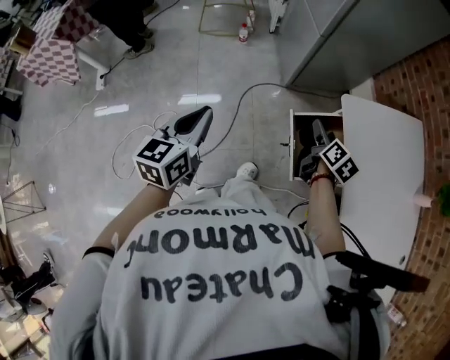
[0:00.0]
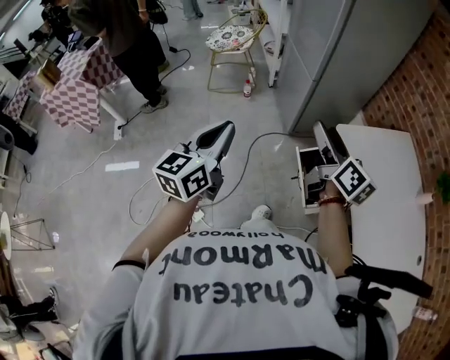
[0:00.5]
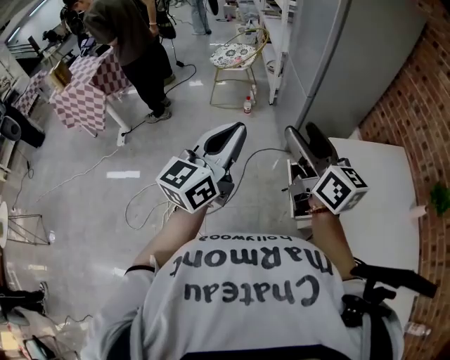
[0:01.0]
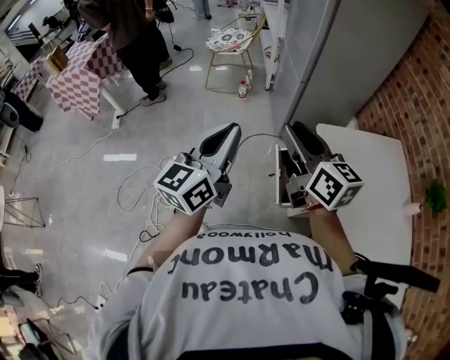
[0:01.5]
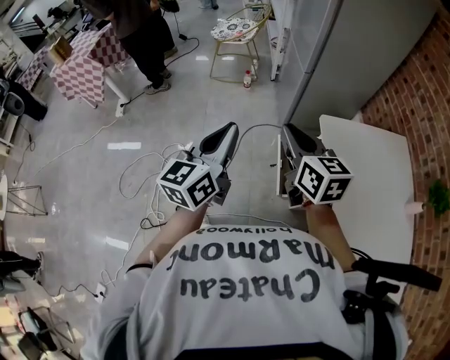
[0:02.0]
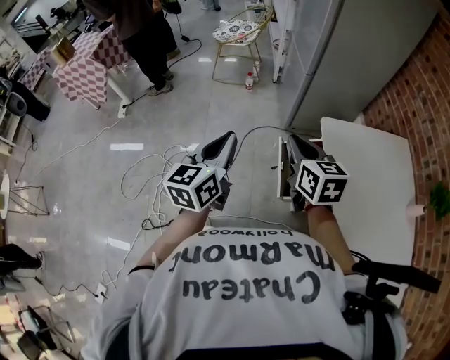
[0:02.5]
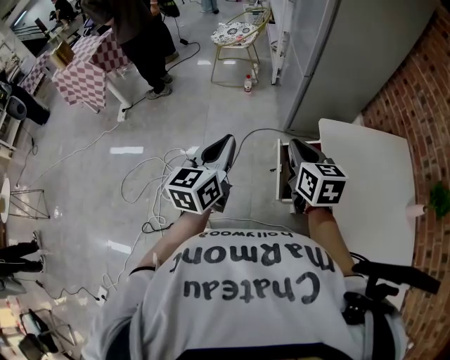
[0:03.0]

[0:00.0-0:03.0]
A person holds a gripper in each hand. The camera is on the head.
0:00.0 to 0:01.5: The left gripper moves upward, to the right and backward, some 20 cm, and swivels some 30 degrees. The right gripper heads upward, covering approximately 30 cm, tips its fingers upward by roughly 30 degrees, and closes.
0:01.5 to 0:03.0: Both grippers travel together downward, about 10 cm. The right gripper changes its angle by roughly 20 degrees, and closes.

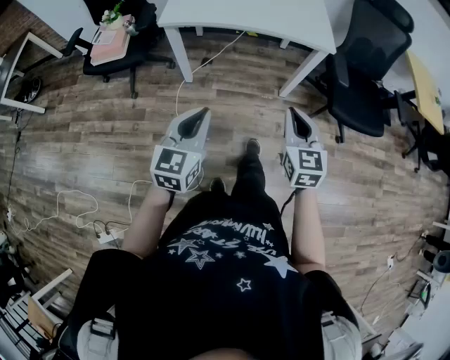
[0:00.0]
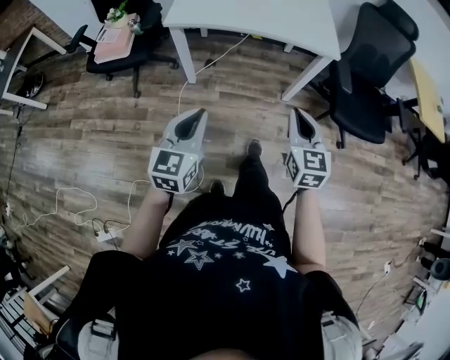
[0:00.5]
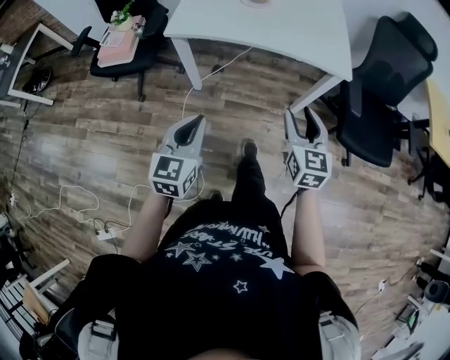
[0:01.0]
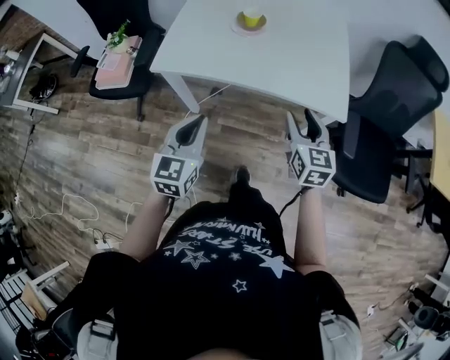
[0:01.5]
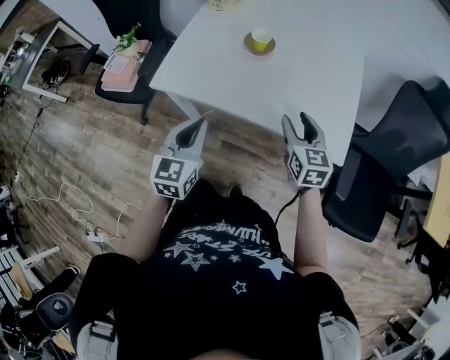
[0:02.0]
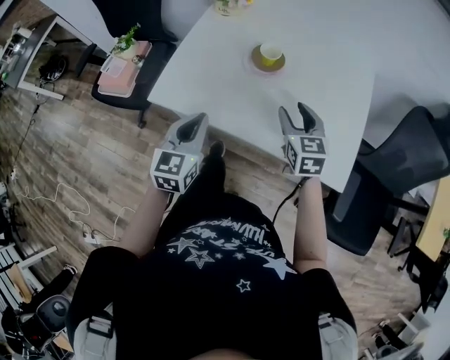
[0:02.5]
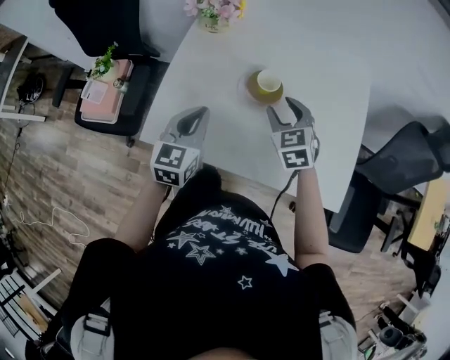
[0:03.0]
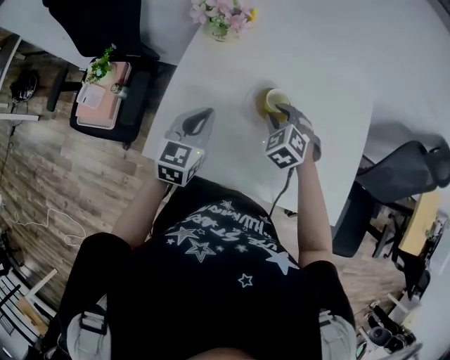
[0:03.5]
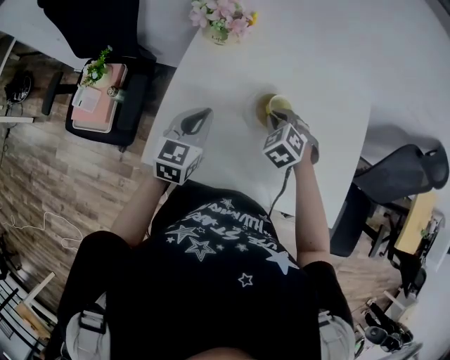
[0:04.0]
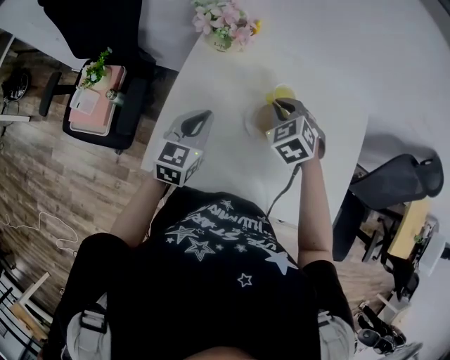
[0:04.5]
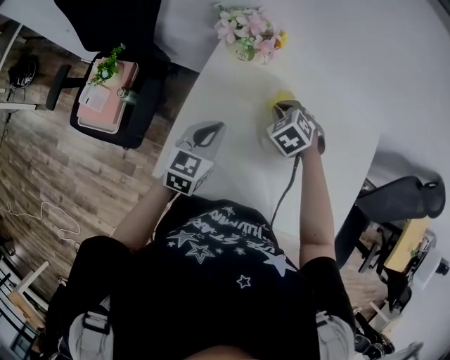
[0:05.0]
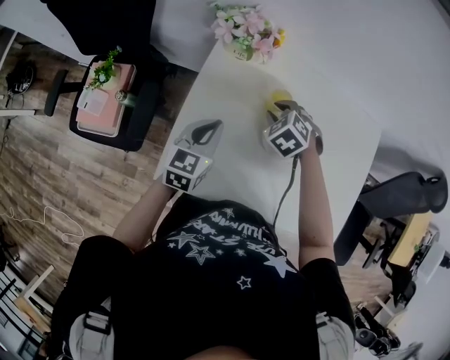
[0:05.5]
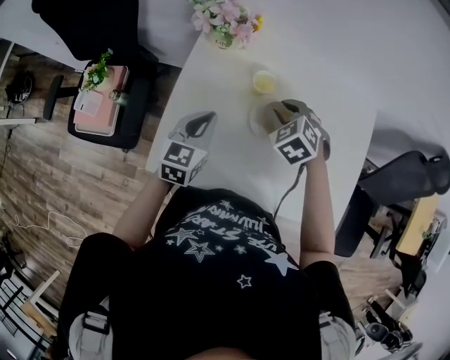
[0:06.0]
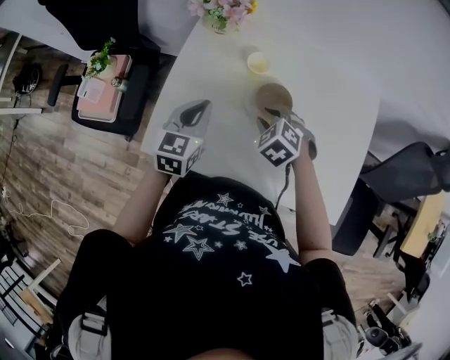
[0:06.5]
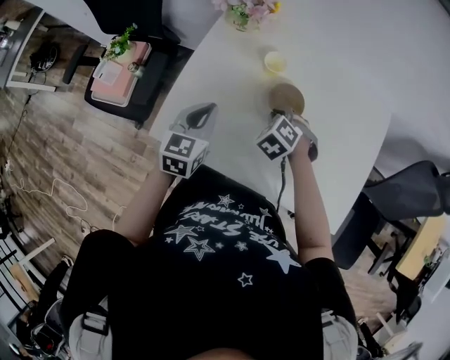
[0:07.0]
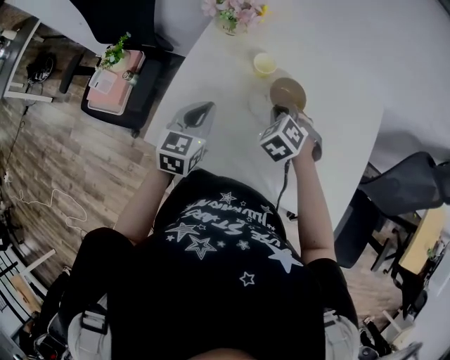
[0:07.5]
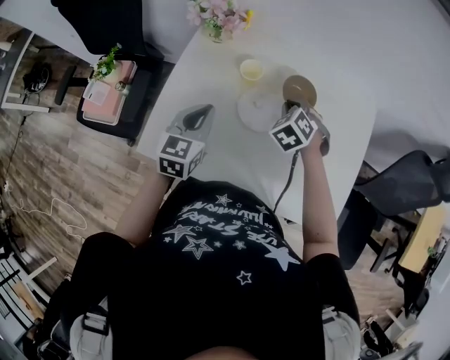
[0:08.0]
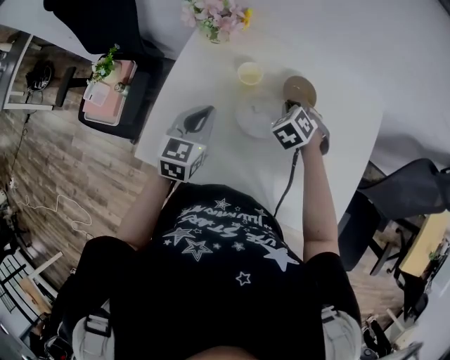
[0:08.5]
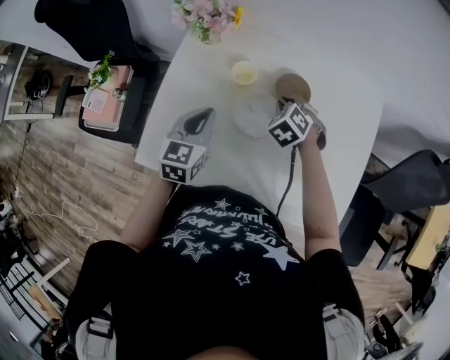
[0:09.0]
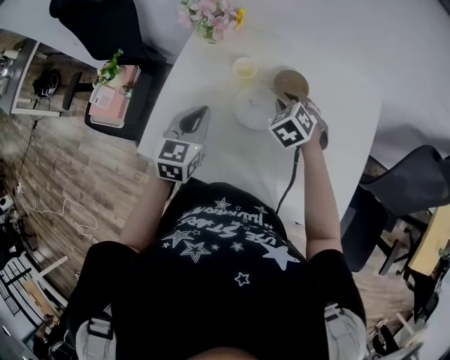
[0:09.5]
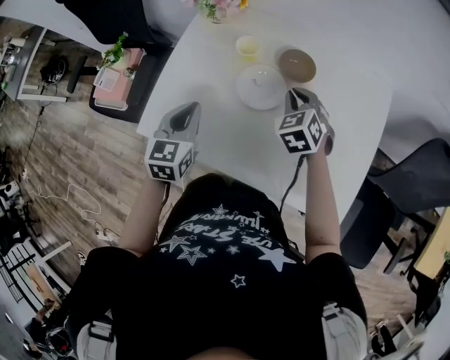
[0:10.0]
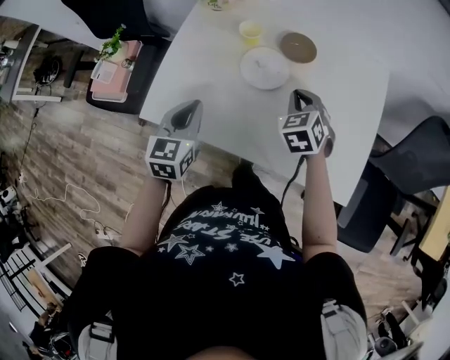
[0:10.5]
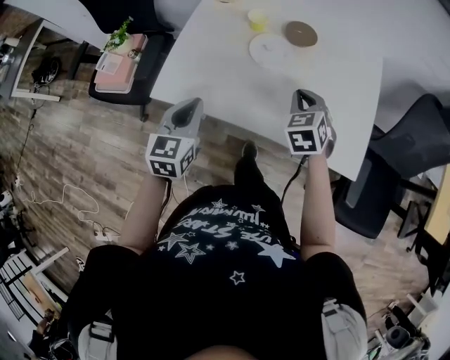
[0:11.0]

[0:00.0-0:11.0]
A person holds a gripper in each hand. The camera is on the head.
0:00.0 to 0:02.0: Both grippers move forward, about 40 cm. The right gripper opens.
0:02.0 to 0:03.5: The left gripper is displaced forward by roughly 30 cm, while the right gripper shifts about 30 cm forward and to the left, rolls counterclockwise, seen from behind, by approximately 50 degrees, and closes up.
0:03.5 to 0:05.5: The right gripper is displaced to the left and forward by about 10 cm. Meanwhile the left gripper goes approximately 10 cm forward and to the left.
0:05.5 to 0:07.5: The left gripper goes some 5 cm backward. The right gripper goes approximately 10 cm backward and to the right, and closes its fingers.
0:07.5 to 0:09.0: The right gripper shifts some 10 cm forward and to the right. Meanwhile the left gripper goes some 5 cm forward.
0:09.0 to 0:11.0: The two grippers go some 20 cm backward. The right gripper turns by some 30 degrees.

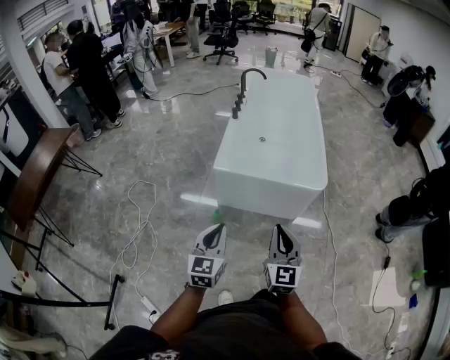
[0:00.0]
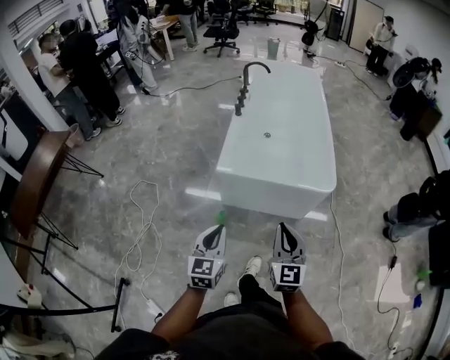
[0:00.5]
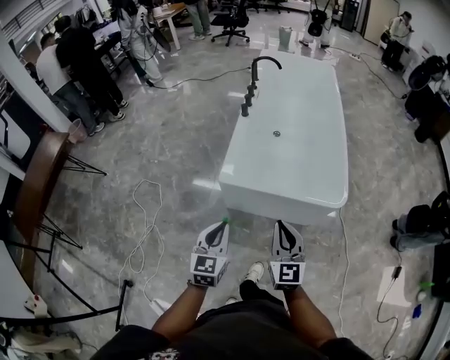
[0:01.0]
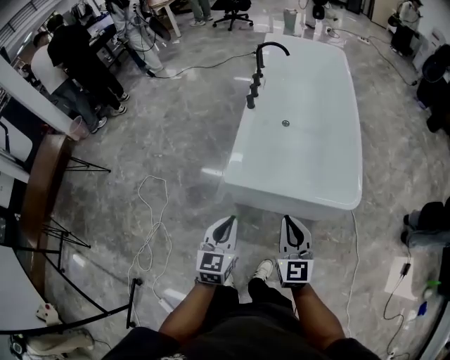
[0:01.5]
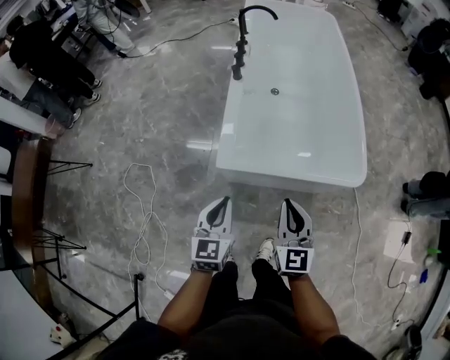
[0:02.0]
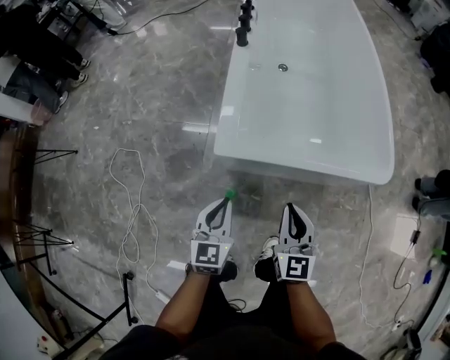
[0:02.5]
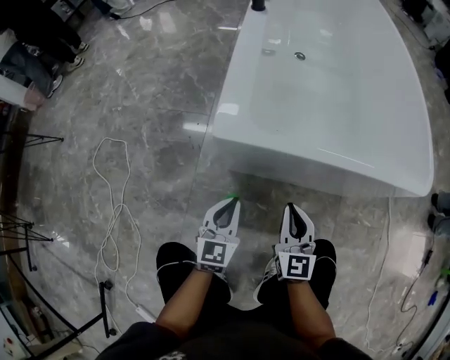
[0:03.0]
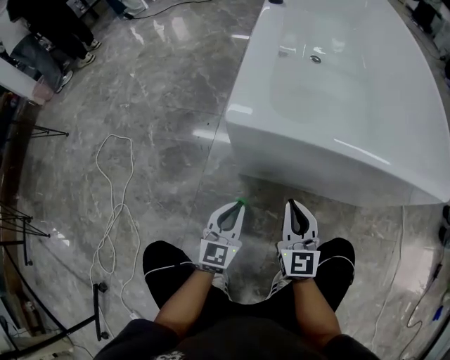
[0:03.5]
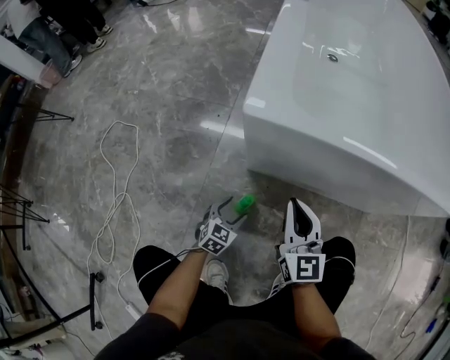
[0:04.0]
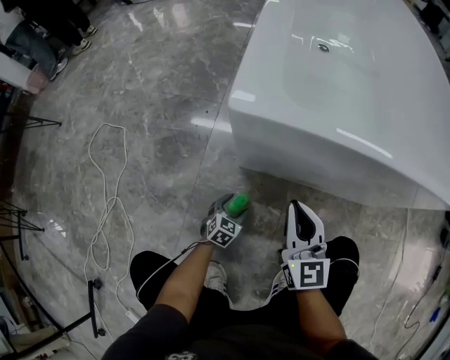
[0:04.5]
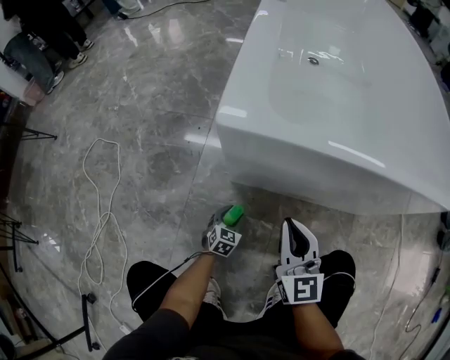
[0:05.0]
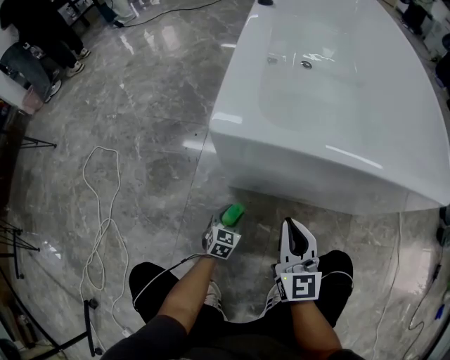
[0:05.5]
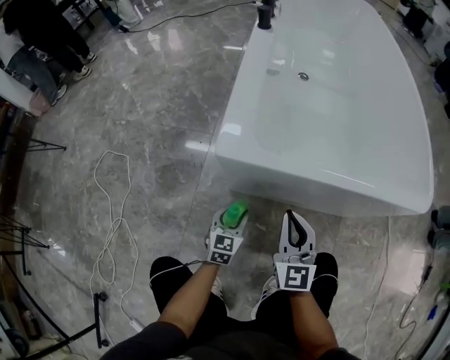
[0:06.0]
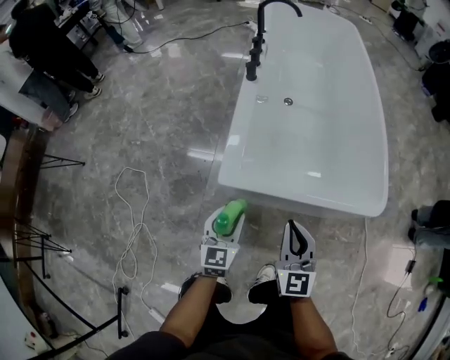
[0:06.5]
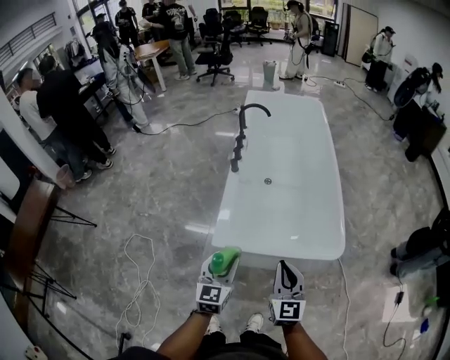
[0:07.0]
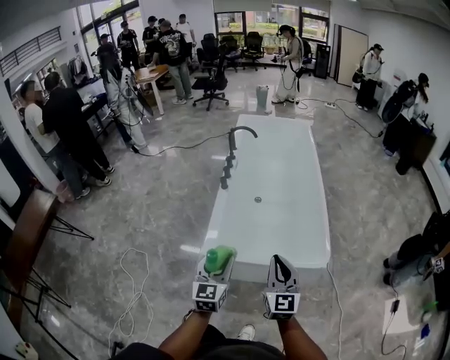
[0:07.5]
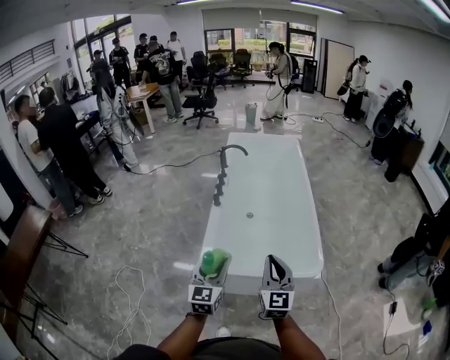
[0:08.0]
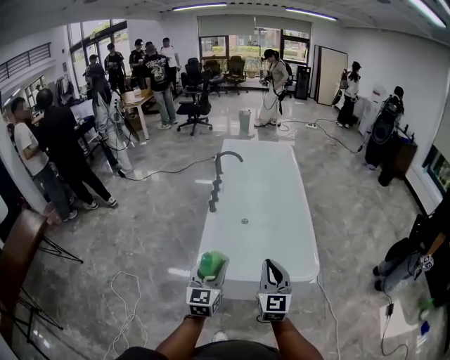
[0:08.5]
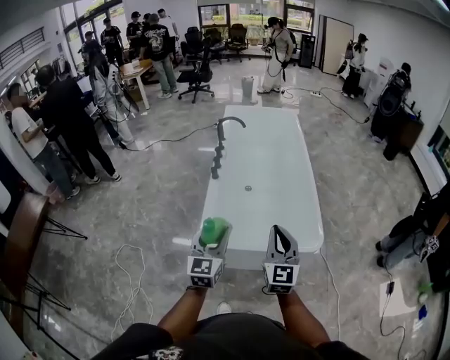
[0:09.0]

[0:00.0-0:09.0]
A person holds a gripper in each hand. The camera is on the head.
0:00.0 to 0:02.0: The grippers both shift forward by roughly 35 cm.
0:02.0 to 0:04.5: The right gripper shifts about 50 cm downward. Meanwhile the left gripper is displaced downward by roughly 80 cm, changes its angle by roughly 30 degrees, and opens its fingers.
0:04.5 to 0:07.0: The two grippers go about 80 cm upward. The left gripper tilts its fingers about 30 degrees upward, and closes.
0:07.0 to 0:09.0: The two grippers go about 10 cm upward.

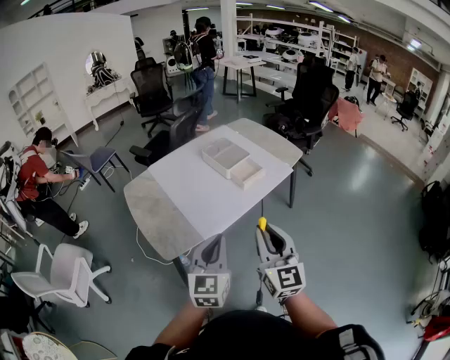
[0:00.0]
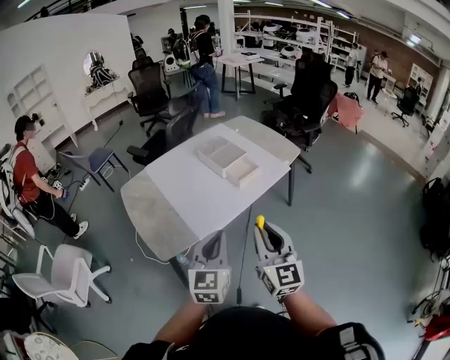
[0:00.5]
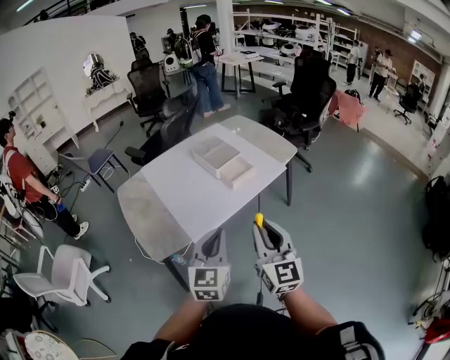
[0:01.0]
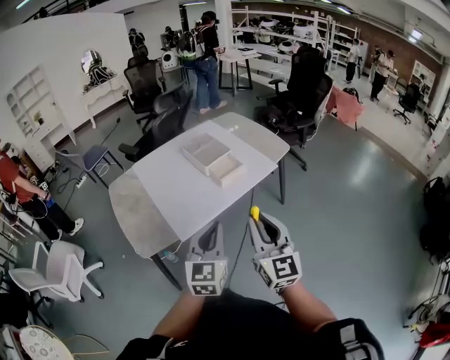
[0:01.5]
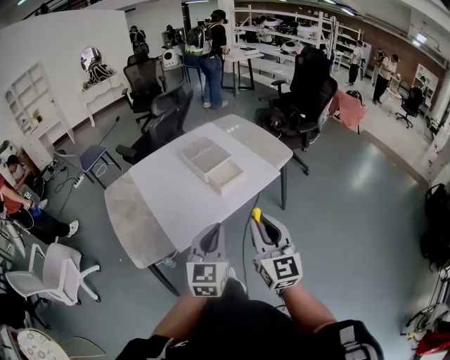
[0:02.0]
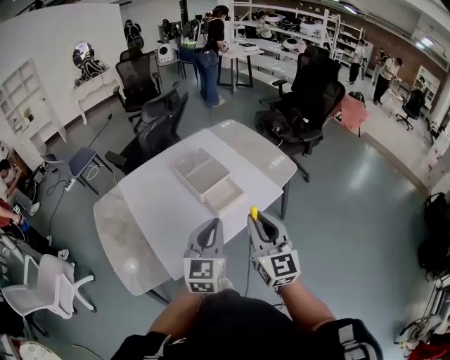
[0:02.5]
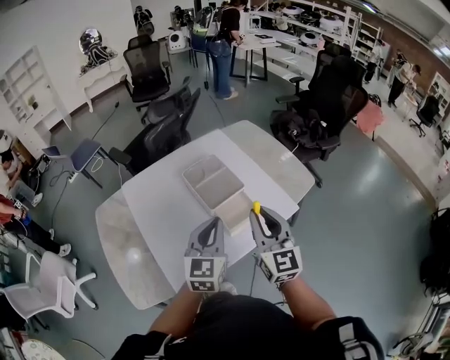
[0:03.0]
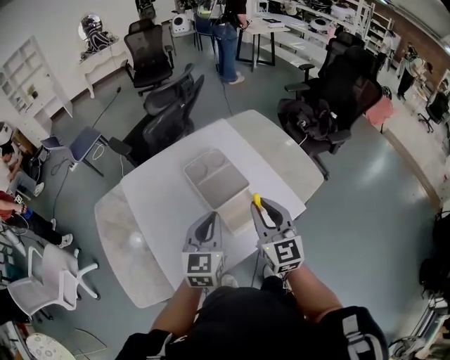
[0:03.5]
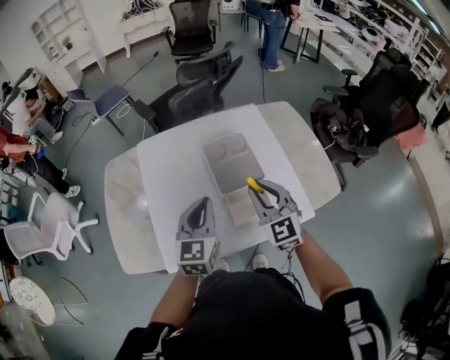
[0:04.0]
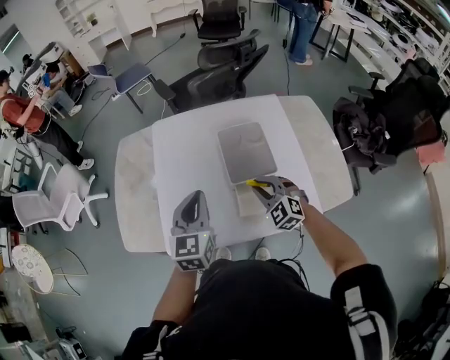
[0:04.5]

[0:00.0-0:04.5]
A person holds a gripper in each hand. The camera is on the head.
0:00.0 to 0:02.0: The two grippers go some 20 cm to the right and forward.
0:02.0 to 0:04.5: The right gripper shifts by approximately 50 cm, and tips its fingers downward by roughly 40 degrees. The left gripper changes place by about 35 cm, and turns by approximately 40 degrees.
